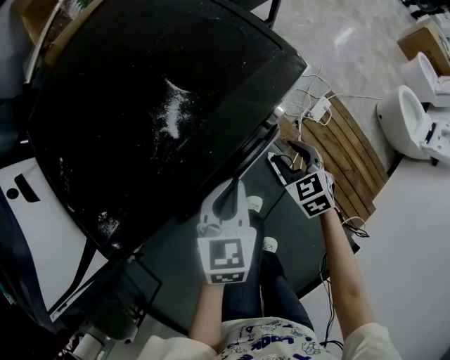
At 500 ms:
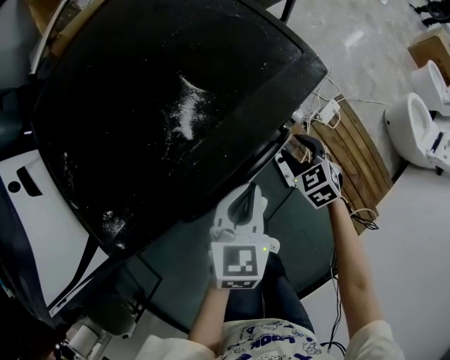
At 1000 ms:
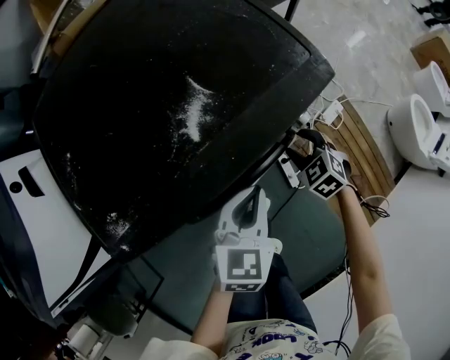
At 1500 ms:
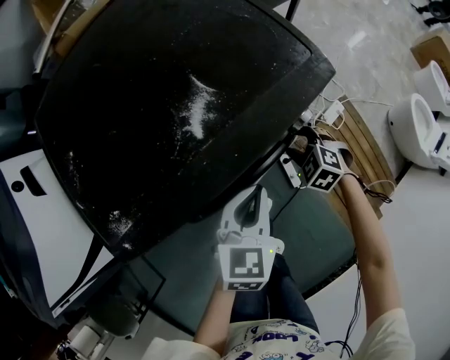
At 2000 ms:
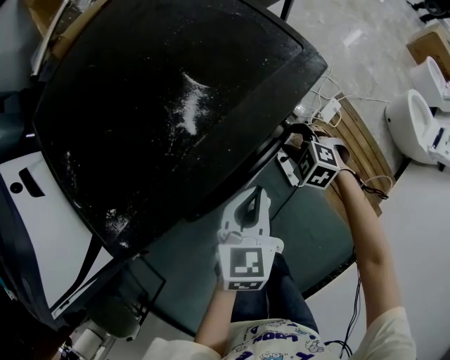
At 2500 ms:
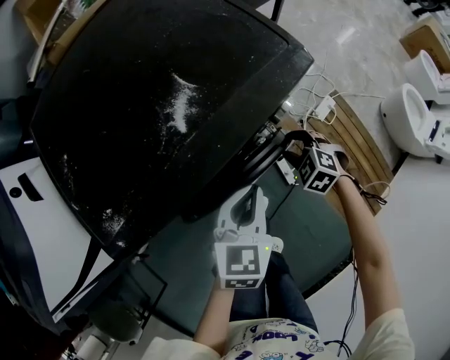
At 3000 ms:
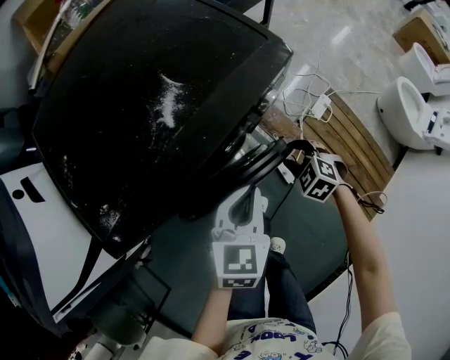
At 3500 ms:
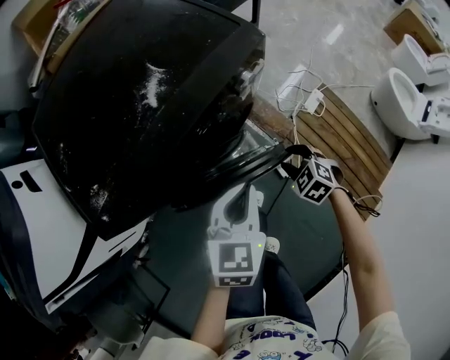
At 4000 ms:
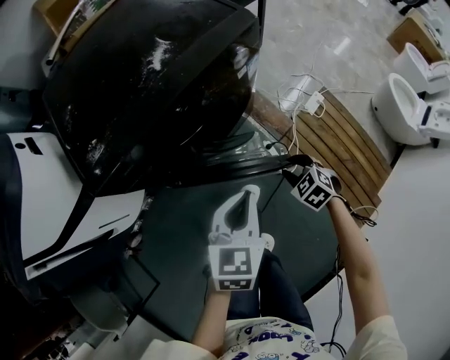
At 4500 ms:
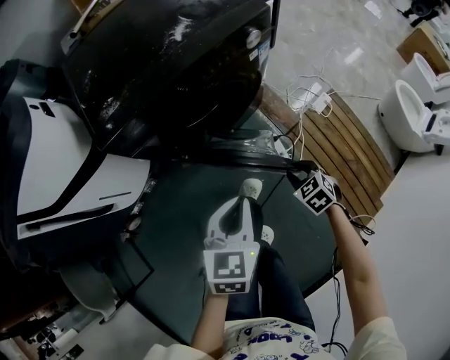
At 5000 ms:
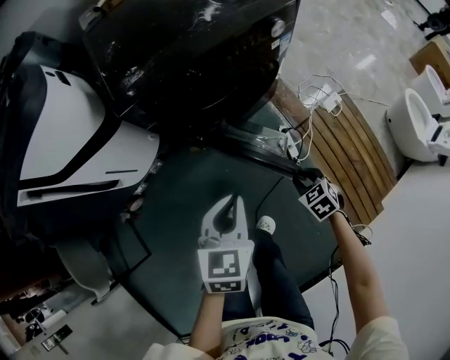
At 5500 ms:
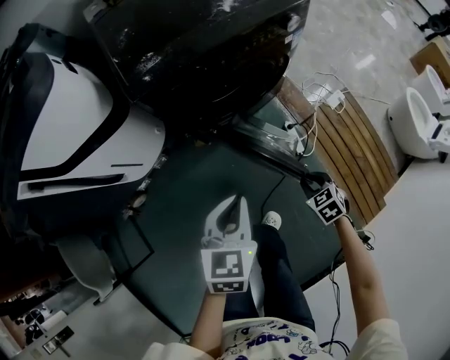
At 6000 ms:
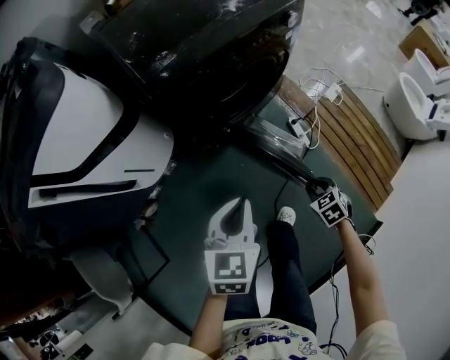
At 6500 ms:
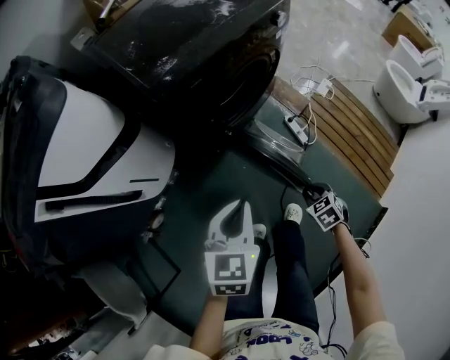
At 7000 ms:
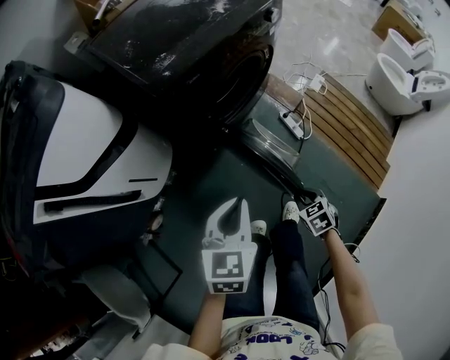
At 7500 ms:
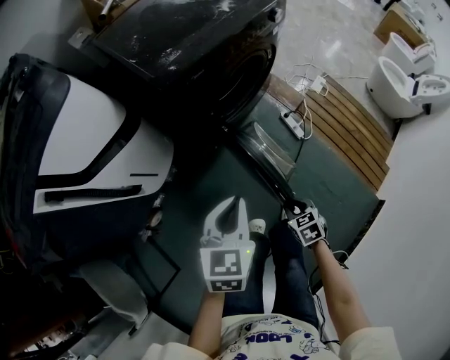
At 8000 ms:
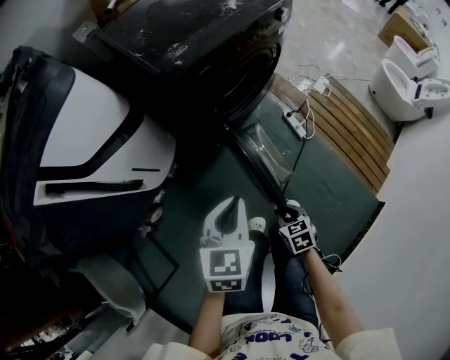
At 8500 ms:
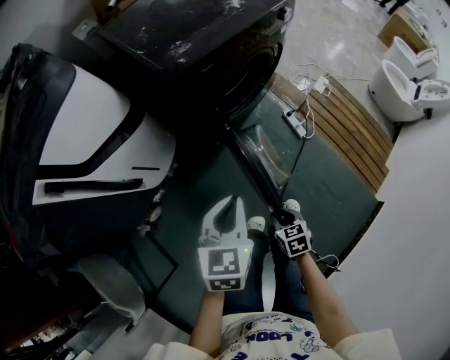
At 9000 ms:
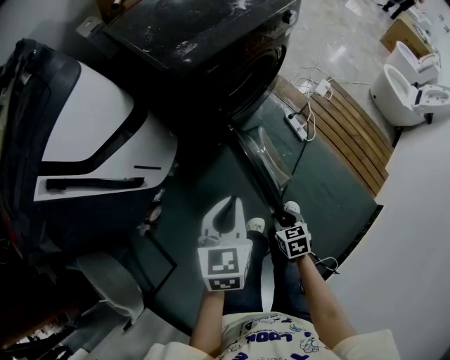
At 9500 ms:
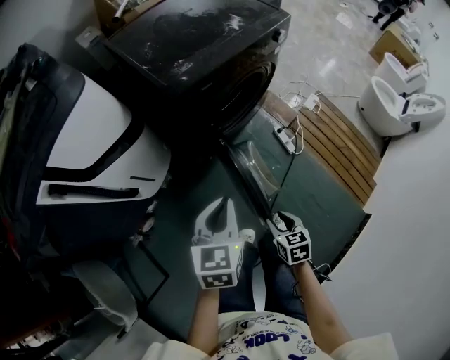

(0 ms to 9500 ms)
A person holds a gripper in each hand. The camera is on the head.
0 ms - 2000 ms: The right gripper travels downward by roughly 5 cm, and turns by about 40 degrees.
2000 ms - 4000 ms: Both grippers move backward, some 20 cm.
4000 ms - 5500 ms: The right gripper heads backward and to the left, covering approximately 20 cm; the left gripper shifts approximately 20 cm to the left and backward.
5500 ms - 7500 ms: The left gripper shifts approximately 15 cm to the left and backward; the right gripper travels to the left and backward by some 25 cm, and rotates about 30 degrees.
7500 ms - 9500 ms: The right gripper is displaced upward by approximately 5 cm.

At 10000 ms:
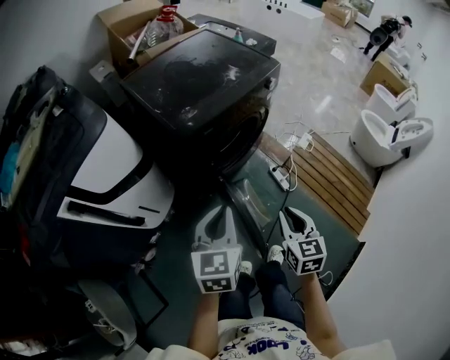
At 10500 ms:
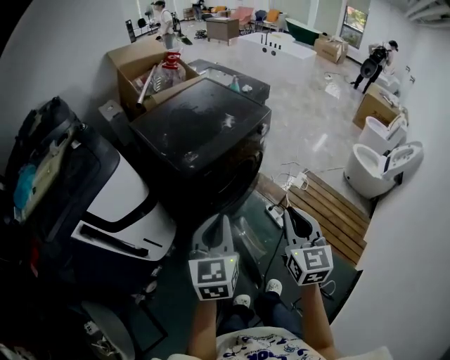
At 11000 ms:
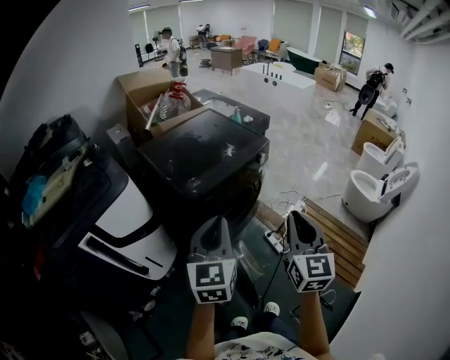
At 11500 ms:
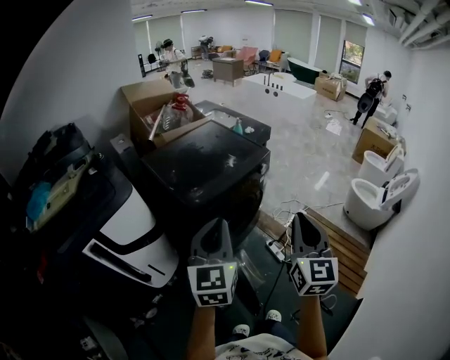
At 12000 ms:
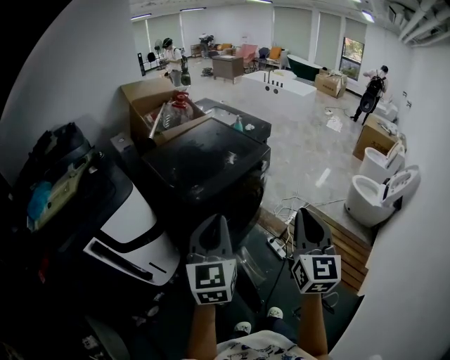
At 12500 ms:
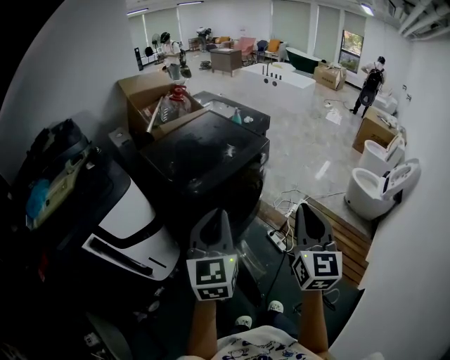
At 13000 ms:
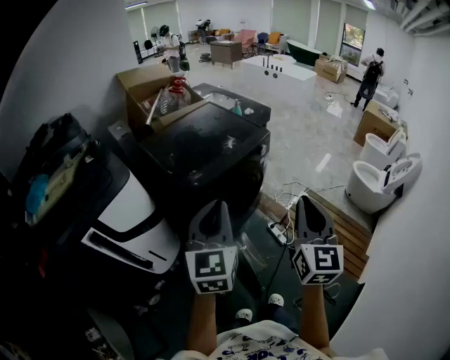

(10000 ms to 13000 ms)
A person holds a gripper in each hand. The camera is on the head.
10000 ms - 11500 ms: The two grippers go roughly 25 cm upward. The right gripper angles its fingers upward, by about 30 degrees, while the left gripper swivels some 20 degrees.
11500 ms - 13000 ms: Neither gripper changes place.

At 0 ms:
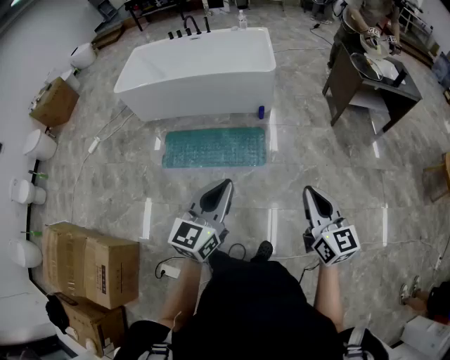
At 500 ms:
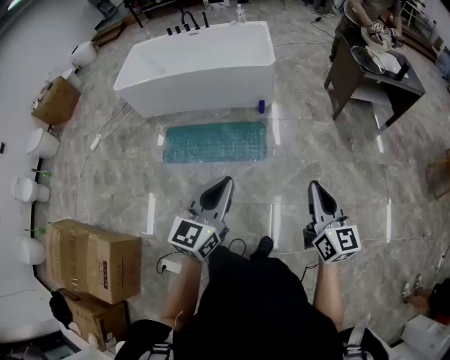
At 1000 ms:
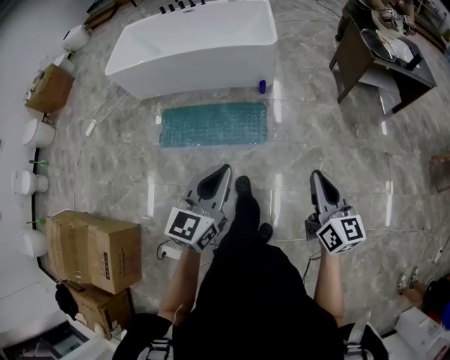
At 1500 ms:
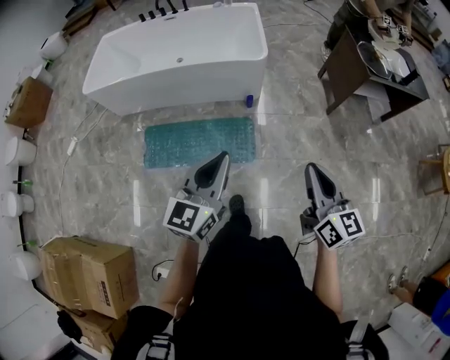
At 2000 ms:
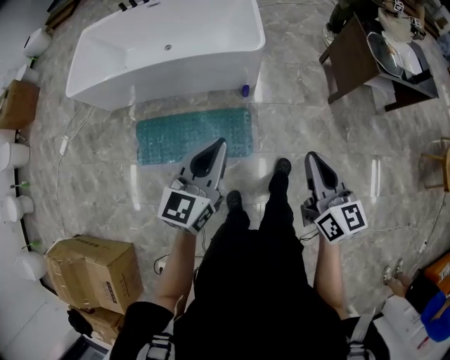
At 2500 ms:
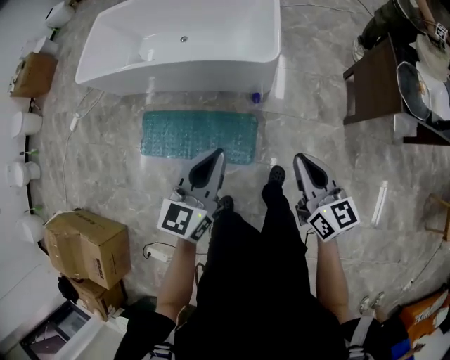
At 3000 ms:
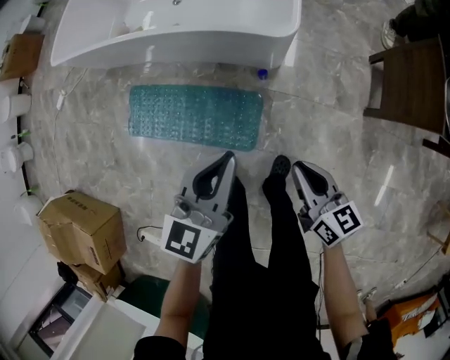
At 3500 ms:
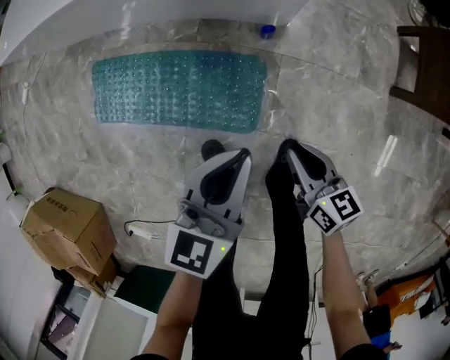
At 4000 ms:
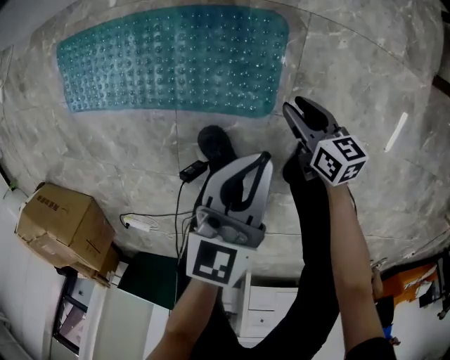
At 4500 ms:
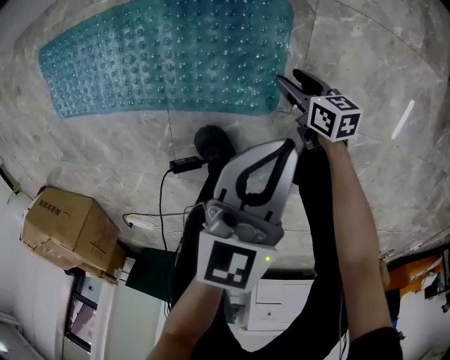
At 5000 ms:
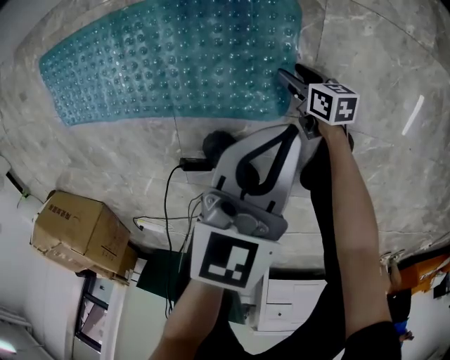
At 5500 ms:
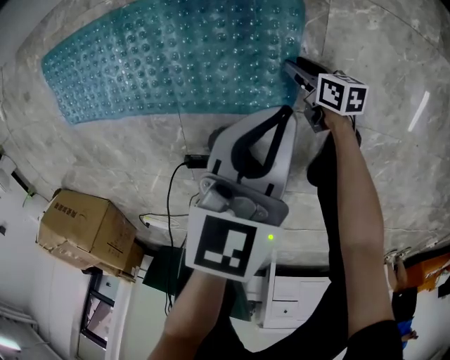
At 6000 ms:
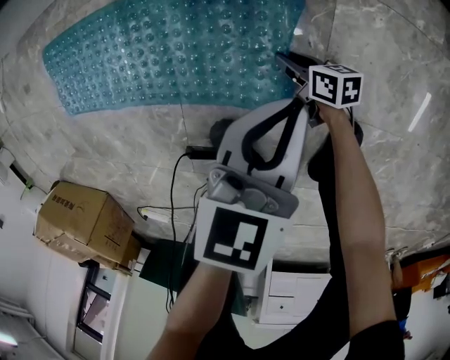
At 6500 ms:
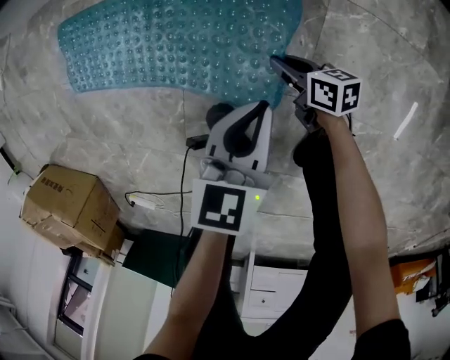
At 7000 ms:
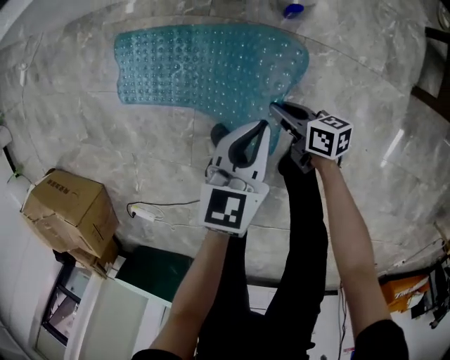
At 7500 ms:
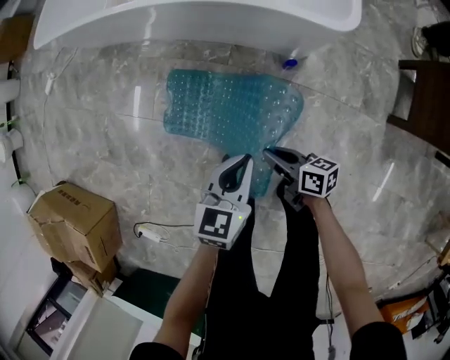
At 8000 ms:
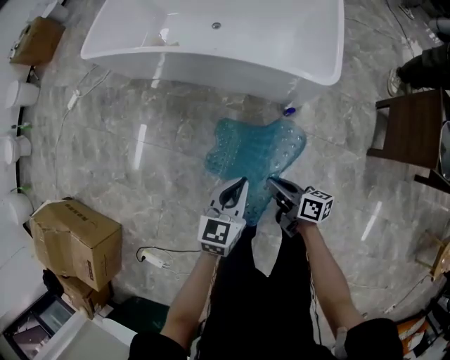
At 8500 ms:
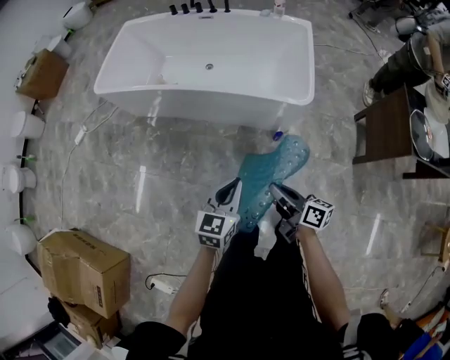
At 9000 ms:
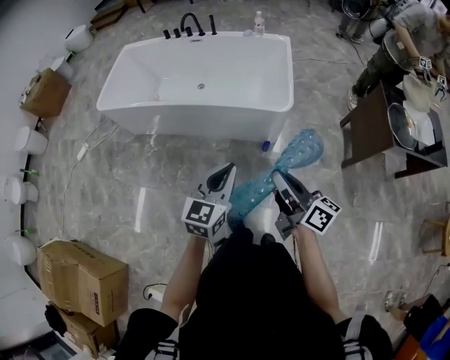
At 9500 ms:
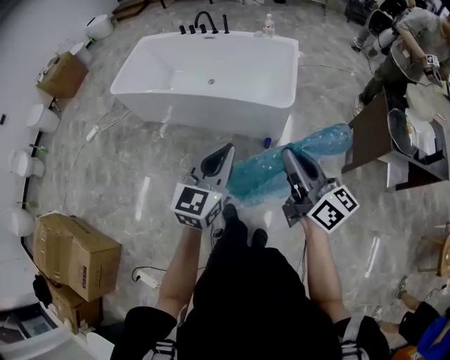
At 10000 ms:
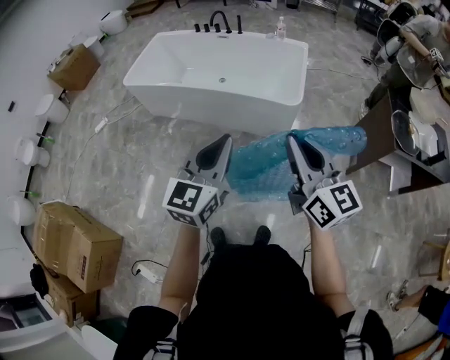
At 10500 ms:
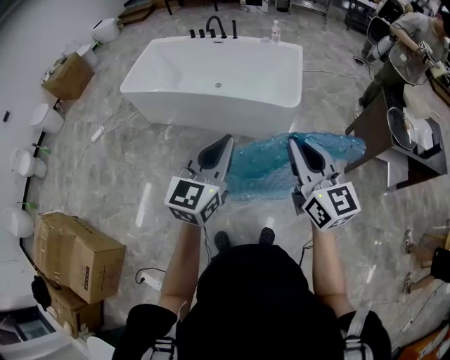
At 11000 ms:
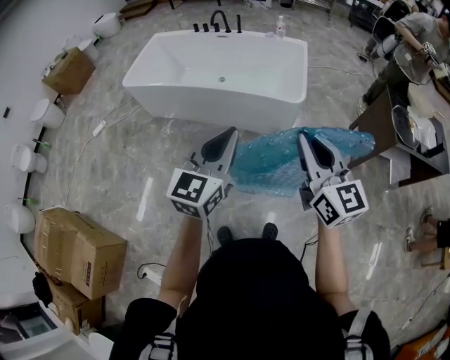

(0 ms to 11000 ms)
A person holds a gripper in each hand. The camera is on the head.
0 ms - 2000 ms: The two grippers travel together, forward, roughly 40 cm.
2000 ms - 3500 ms: Both grippers move downward and forward, approximately 50 cm. The left gripper changes its angle by roughly 20 degrees; the right gripper rotates approximately 40 degrees.
3500 ms - 5500 ms: The grippers both shift downward by approximately 40 cm. The right gripper rotates approximately 30 degrees, and opens up.
5500 ms - 7500 ms: Both grippers move upward, roughly 50 cm. The right gripper changes its angle by approximately 30 degrees, and closes.
7500 ms - 9000 ms: Both grippers travel together upward, about 40 cm. The left gripper swivels about 30 degrees. Meanwhile the right gripper turns by approximately 40 degrees.
9000 ms - 11000 ms: The two grippers go some 20 cm upward and backward. The right gripper rolls counterclockwise, seen from behind, by roughly 50 degrees.

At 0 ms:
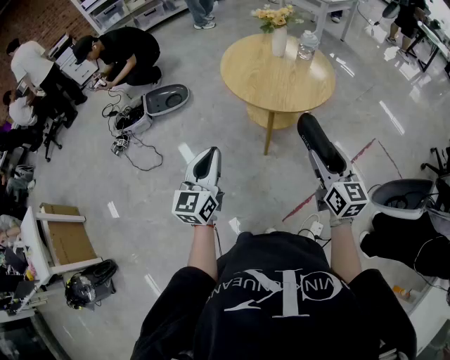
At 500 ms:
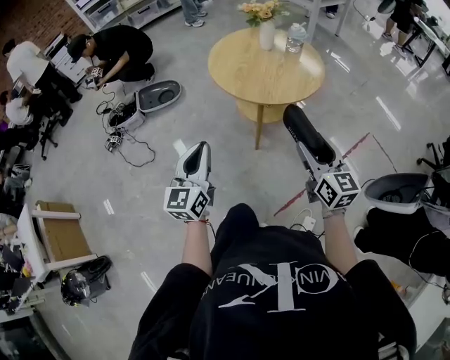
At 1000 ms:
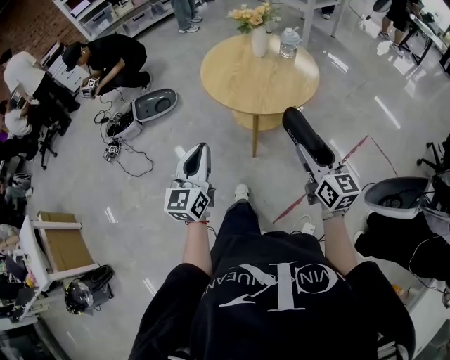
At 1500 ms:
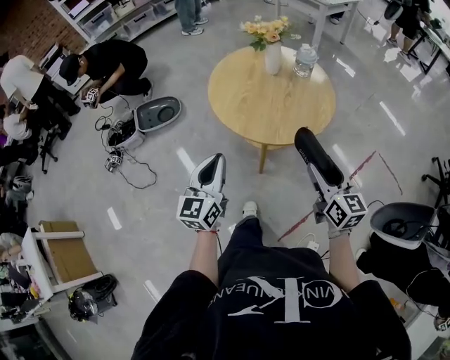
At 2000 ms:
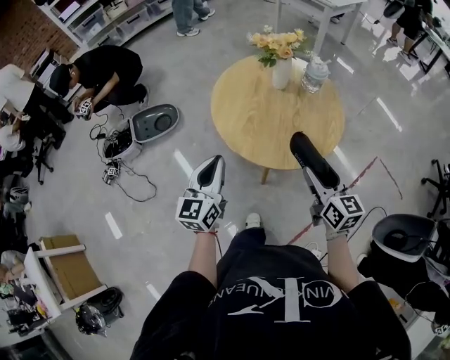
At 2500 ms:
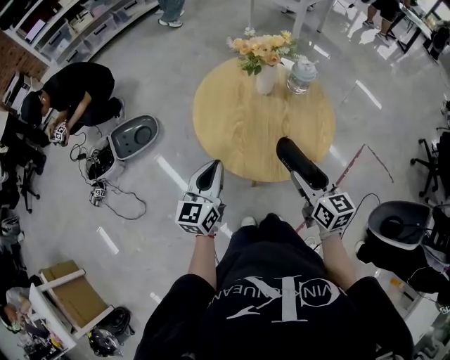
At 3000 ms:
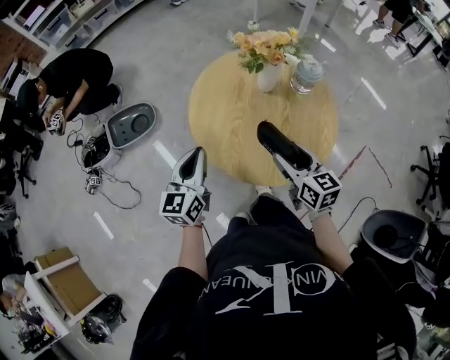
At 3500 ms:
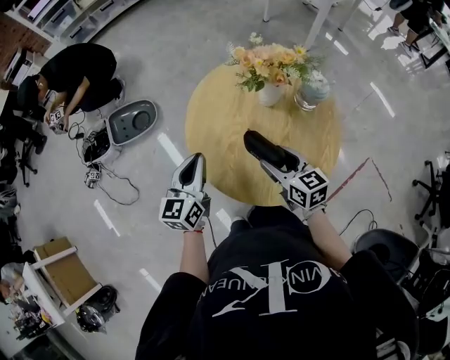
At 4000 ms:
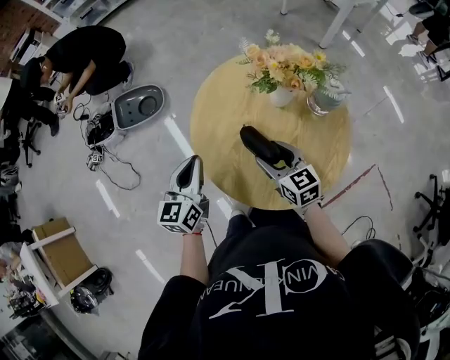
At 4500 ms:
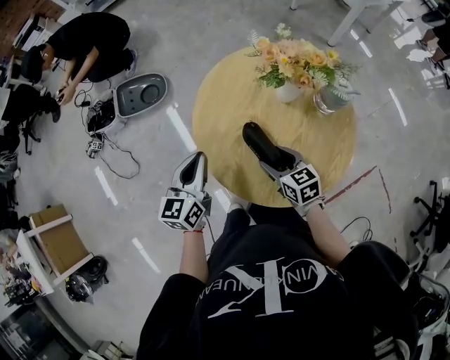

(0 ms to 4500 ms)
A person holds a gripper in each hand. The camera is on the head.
0 ms - 2000 ms: Both grippers move forward, some 25 cm.
2000 ms - 4500 ms: The left gripper shifts by roughly 15 cm, while the right gripper ends up some 25 cm from where it was, and swivels approximately 40 degrees.
